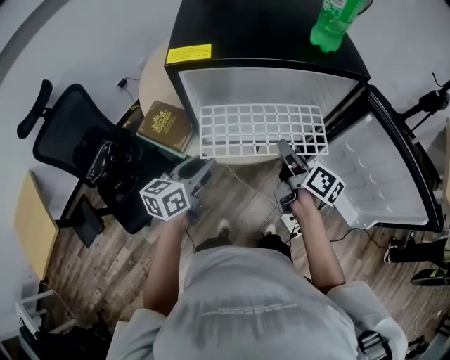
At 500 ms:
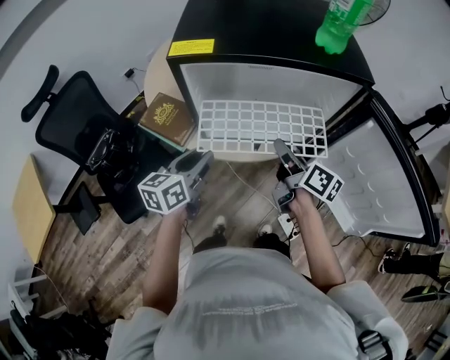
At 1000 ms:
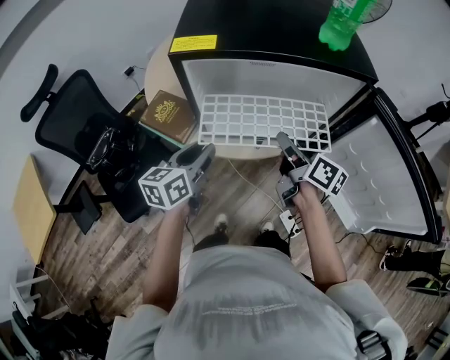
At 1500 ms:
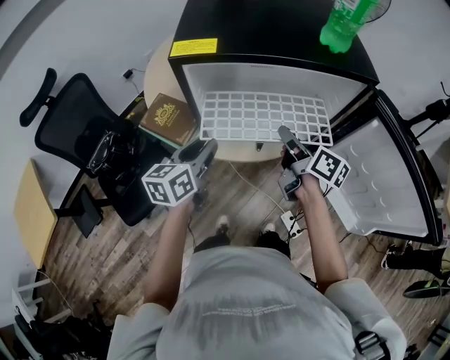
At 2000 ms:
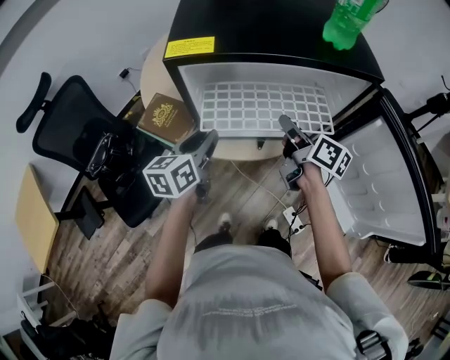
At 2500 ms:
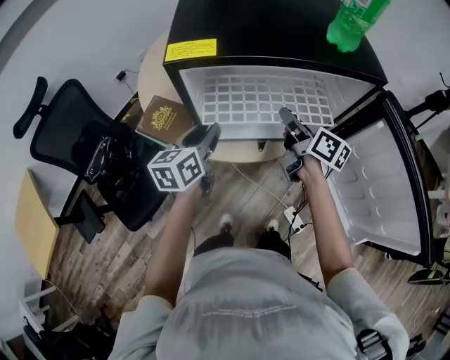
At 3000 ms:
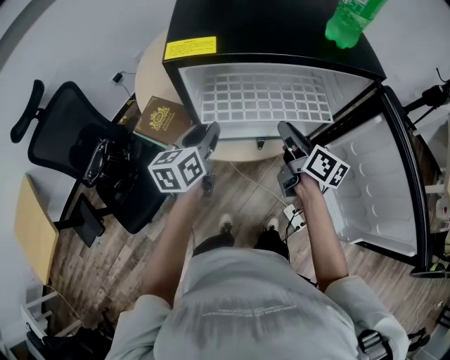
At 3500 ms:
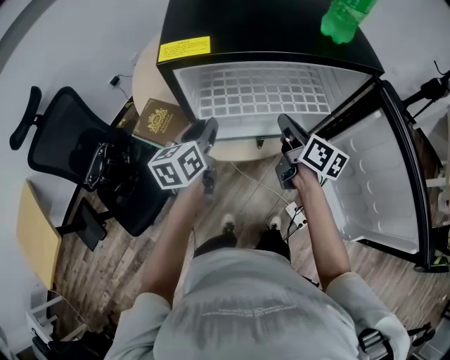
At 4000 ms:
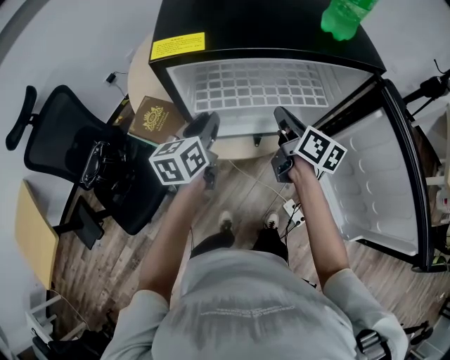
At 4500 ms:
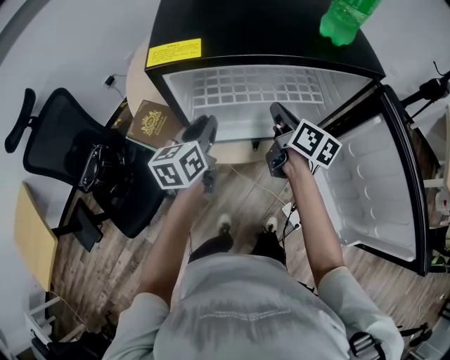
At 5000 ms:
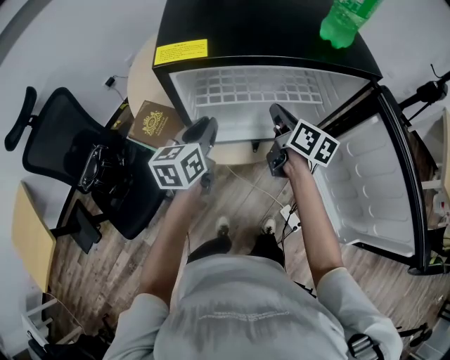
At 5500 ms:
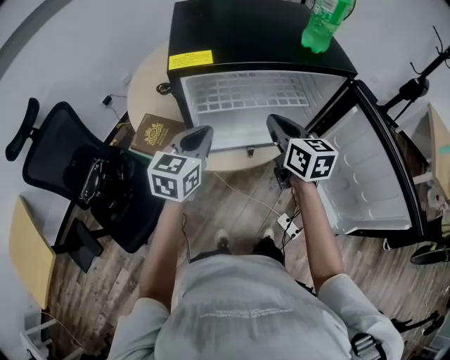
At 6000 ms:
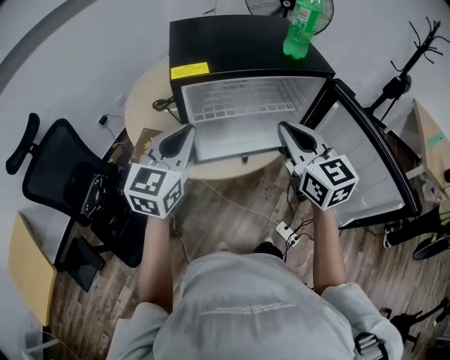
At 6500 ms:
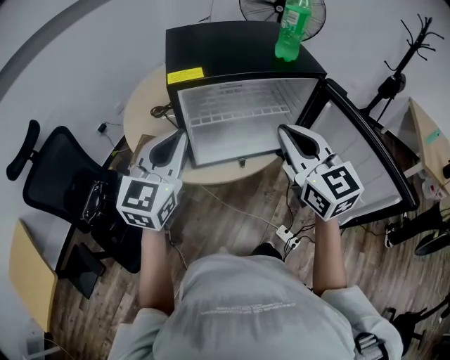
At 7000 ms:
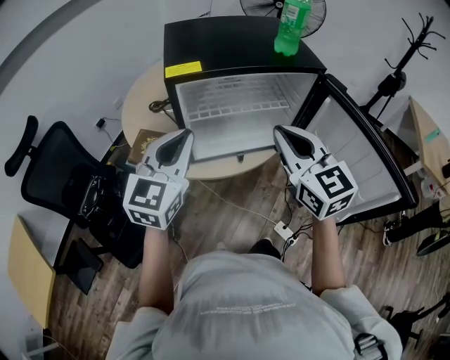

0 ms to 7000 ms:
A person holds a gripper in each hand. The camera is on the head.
0 ms to 2000 ms: Both grippers move forward, roughly 5 cm.
2000 ms to 5000 ms: The grippers stay close to where they were, moving slightly.
5000 ms to 7000 ms: The left gripper moves upward and backward, some 20 cm, and turns by approximately 40 degrees; the right gripper heads backward and upward, covering approximately 25 cm, and rolls counterclockwise, seen from behind, by approximately 50 degrees.

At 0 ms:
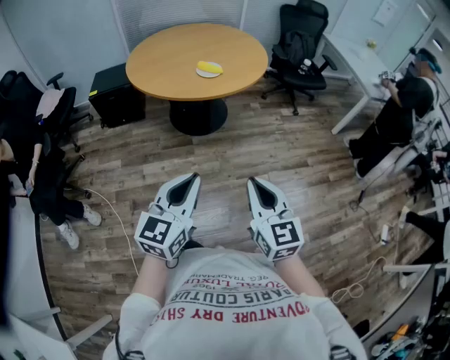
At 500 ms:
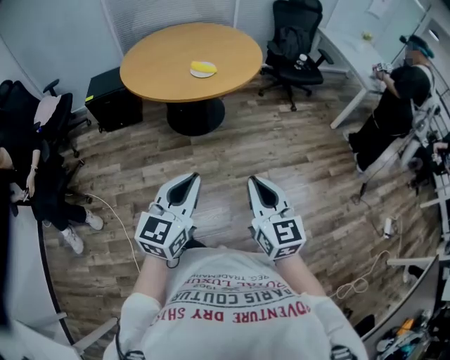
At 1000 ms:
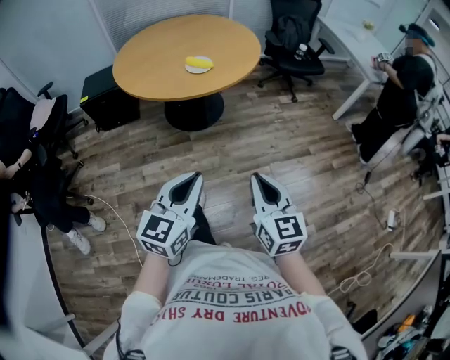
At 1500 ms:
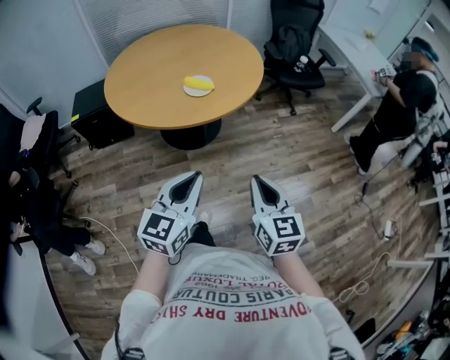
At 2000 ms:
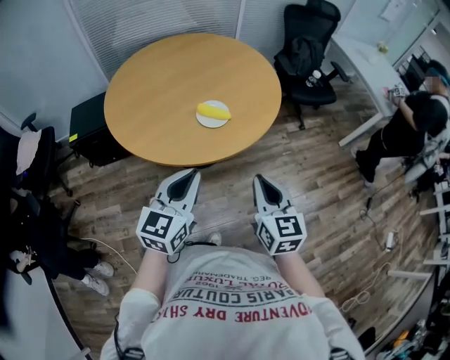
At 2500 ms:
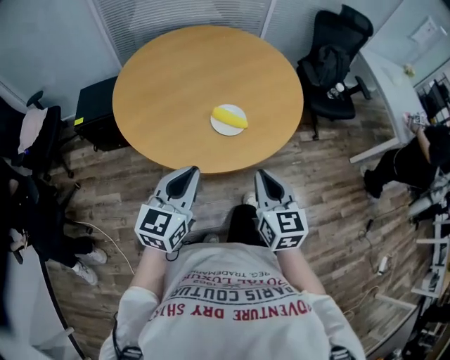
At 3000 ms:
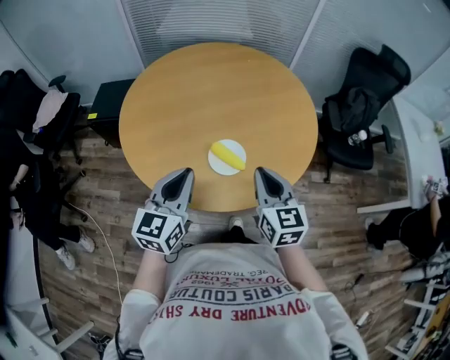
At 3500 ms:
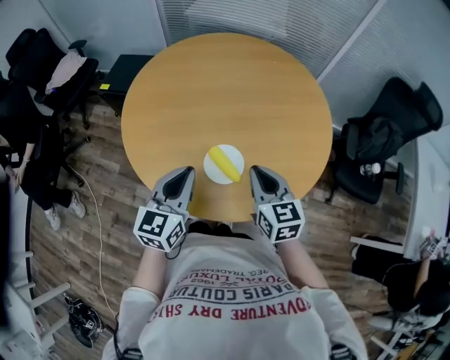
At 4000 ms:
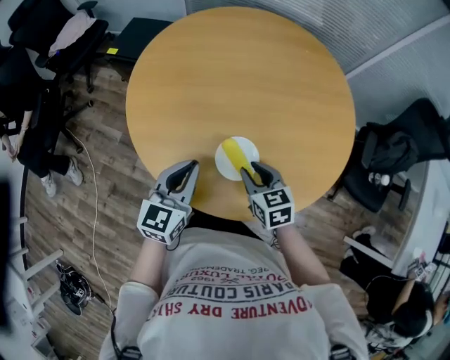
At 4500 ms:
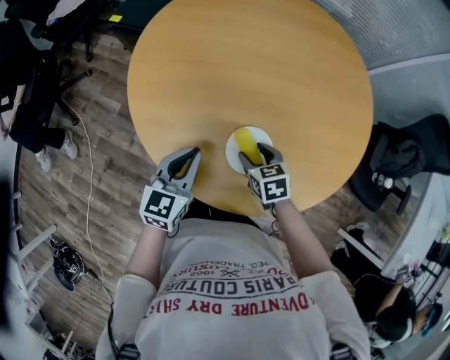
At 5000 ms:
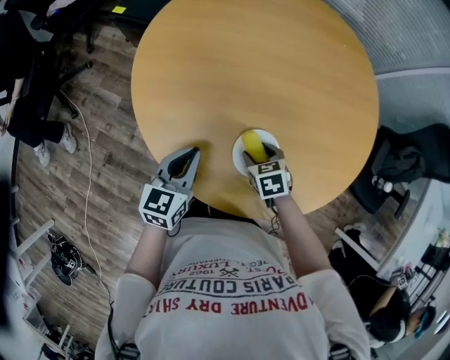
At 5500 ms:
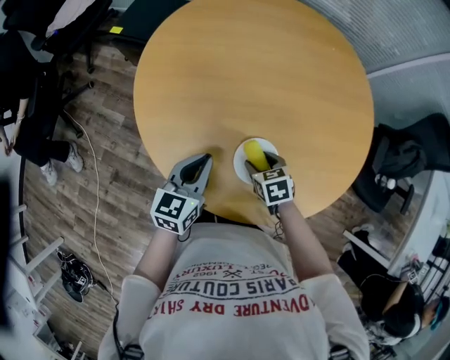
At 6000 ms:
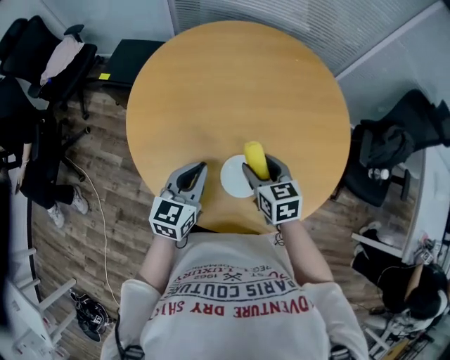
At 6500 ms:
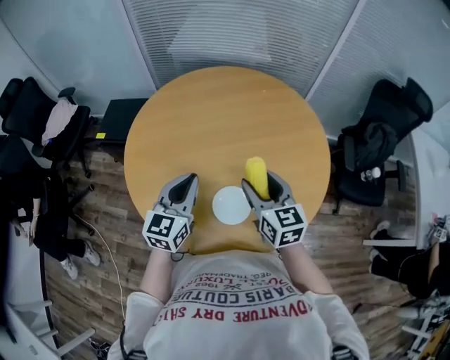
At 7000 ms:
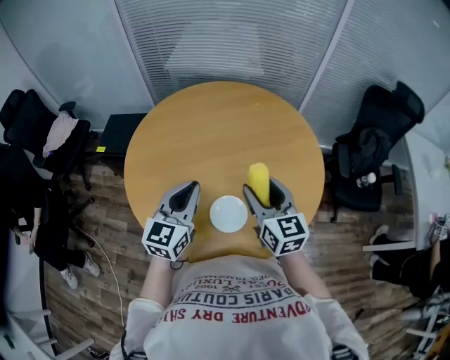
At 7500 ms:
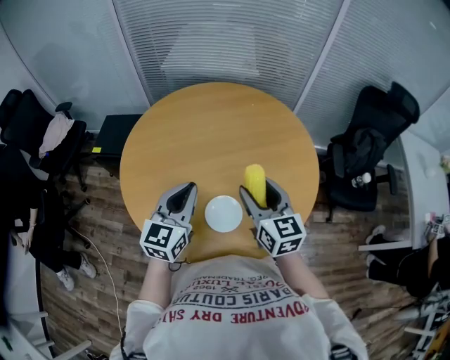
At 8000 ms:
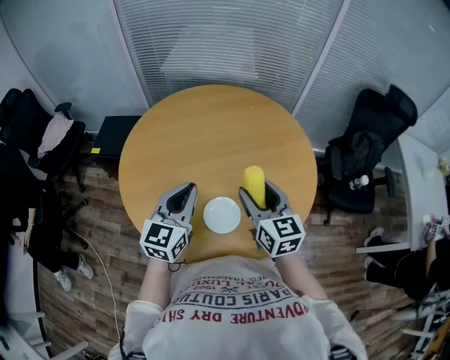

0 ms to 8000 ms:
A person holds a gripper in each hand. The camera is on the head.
0 ms to 2000 ms: Both grippers move forward, approximately 40 cm.
2000 ms to 4000 ms: The right gripper ends up roughly 40 cm from where it was, rotates about 60 degrees, and opens up, while the left gripper shifts by roughly 30 cm, and swivels some 40 degrees.
4000 ms to 6000 ms: The two grippers go approximately 5 cm forward. The right gripper travels downward and back again, some 10 cm each way, and opens; the left gripper travels downward and back again, approximately 10 cm each way.
6000 ms to 8000 ms: Both grippers travel together upward and to the right, roughly 15 cm. The right gripper turns by some 30 degrees.

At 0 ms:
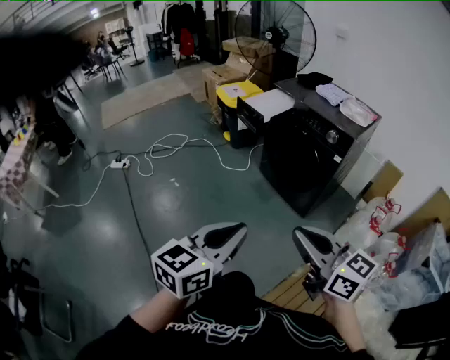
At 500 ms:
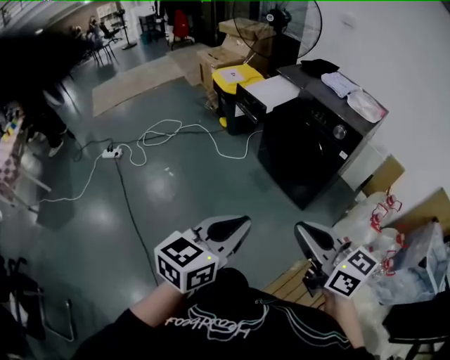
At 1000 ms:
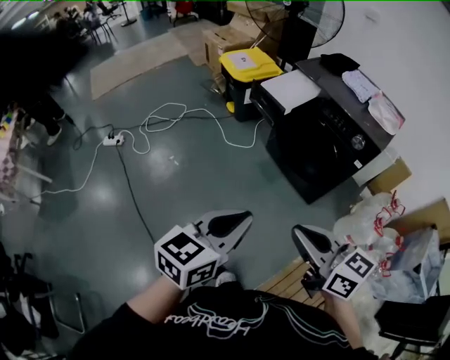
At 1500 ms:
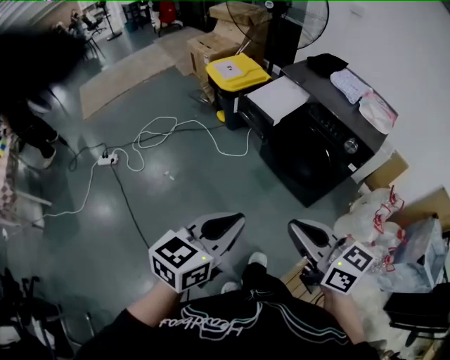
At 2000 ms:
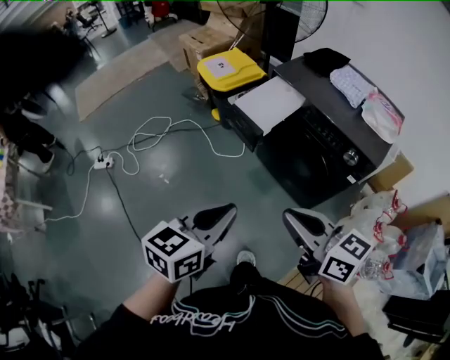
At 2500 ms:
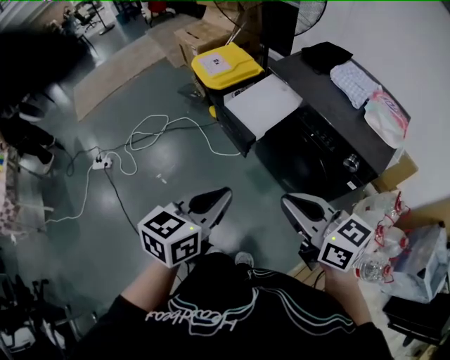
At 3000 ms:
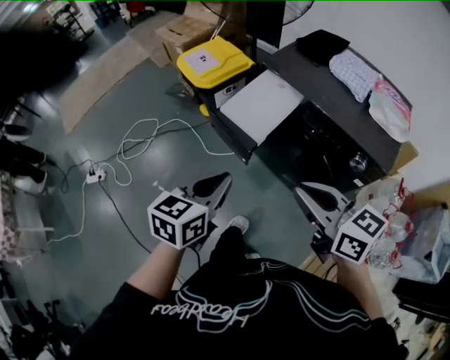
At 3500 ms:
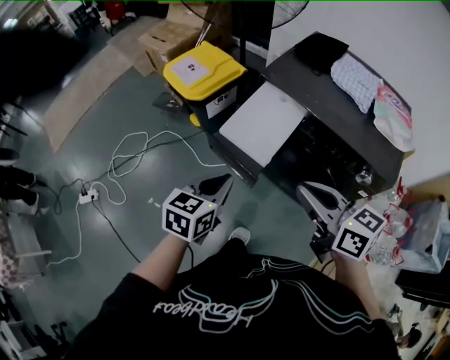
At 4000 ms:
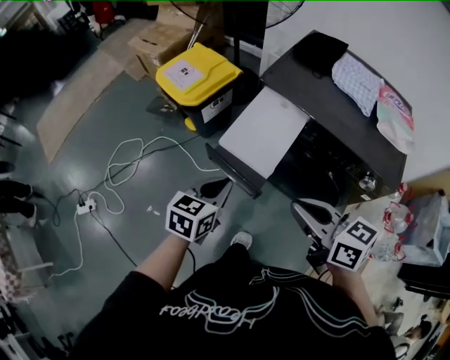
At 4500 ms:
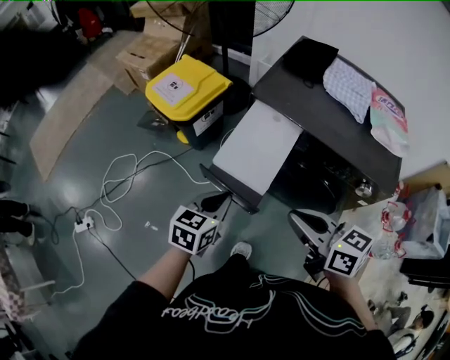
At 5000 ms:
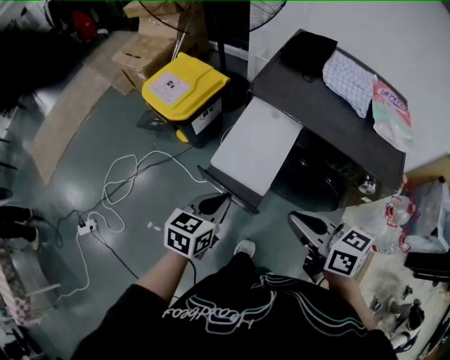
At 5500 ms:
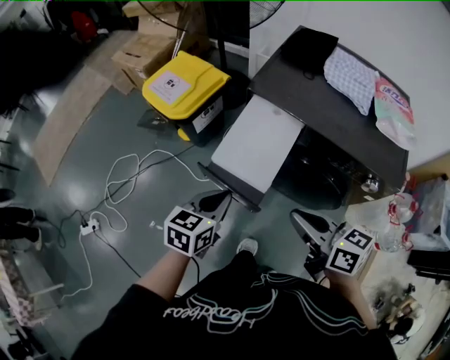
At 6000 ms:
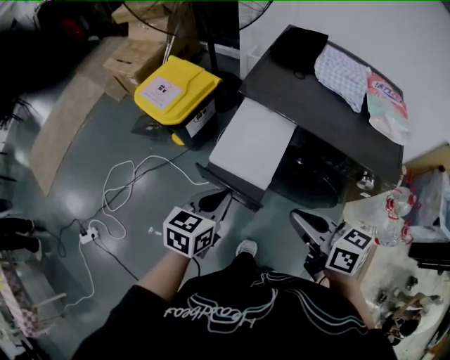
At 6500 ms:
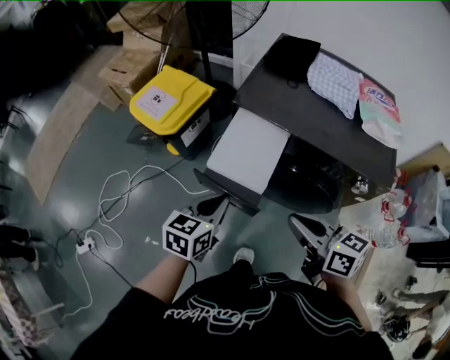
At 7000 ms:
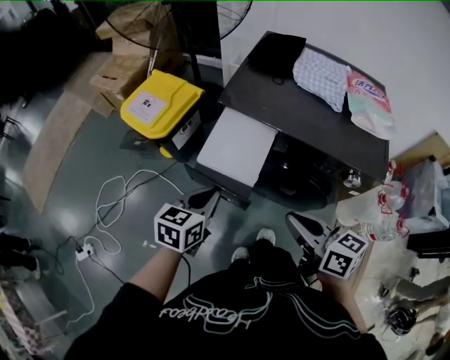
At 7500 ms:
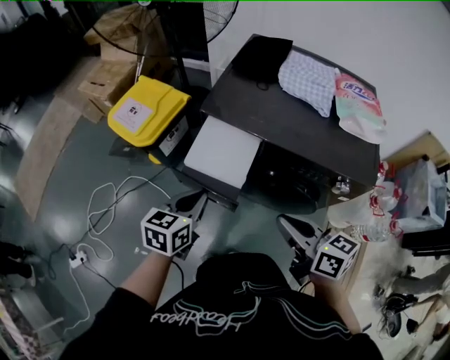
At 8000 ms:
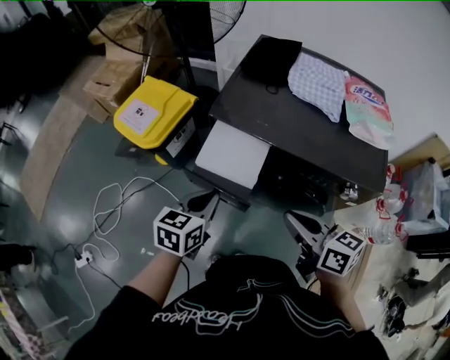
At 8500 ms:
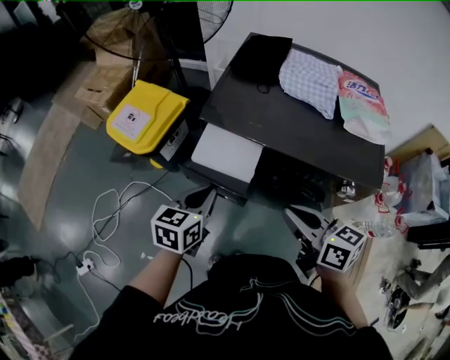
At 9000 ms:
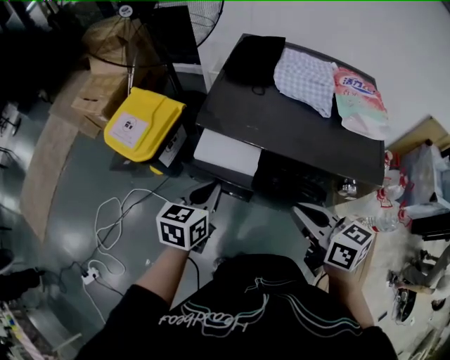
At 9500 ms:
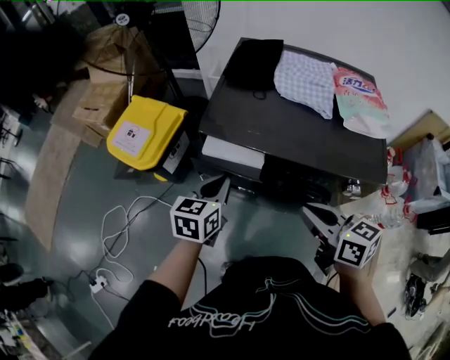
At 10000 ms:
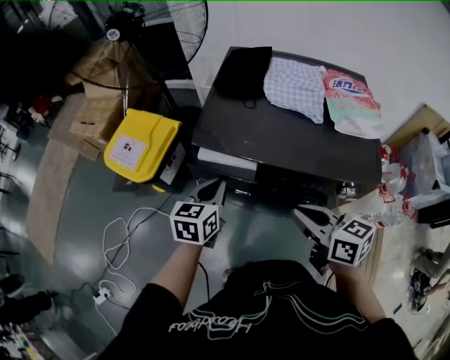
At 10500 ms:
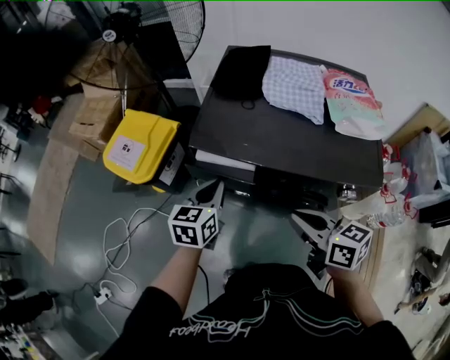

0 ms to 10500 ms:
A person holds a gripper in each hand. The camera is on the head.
0 ms to 2000 ms: Both grippers move forward, roughly 35 cm.
2000 ms to 4000 ms: The right gripper shifts about 25 cm forward, while the left gripper travels forward and downward by approximately 35 cm.
4000 ms to 6500 ms: The right gripper moves about 5 cm. Meanwhile the left gripper heads forward, covering roughly 5 cm.
6500 ms to 8500 ms: Both grippers travel together forward, about 5 cm.
8500 ms to 10500 ms: The left gripper is displaced forward by approximately 10 cm.

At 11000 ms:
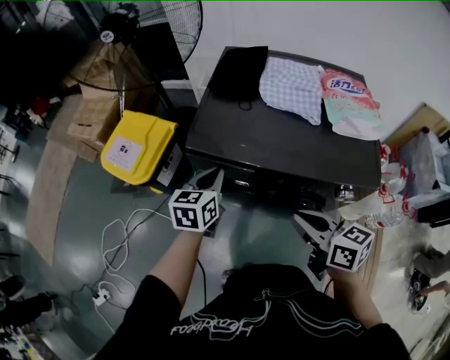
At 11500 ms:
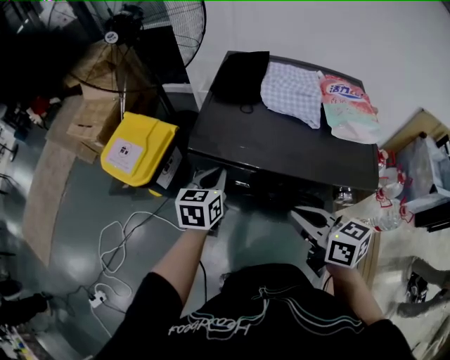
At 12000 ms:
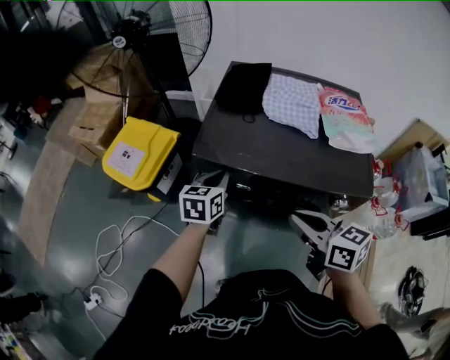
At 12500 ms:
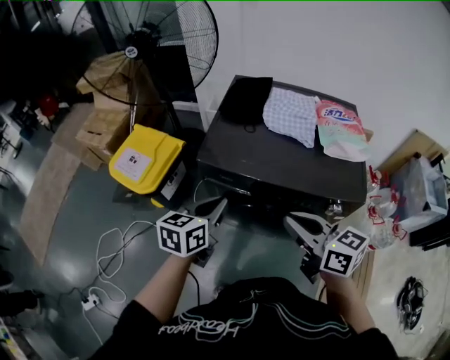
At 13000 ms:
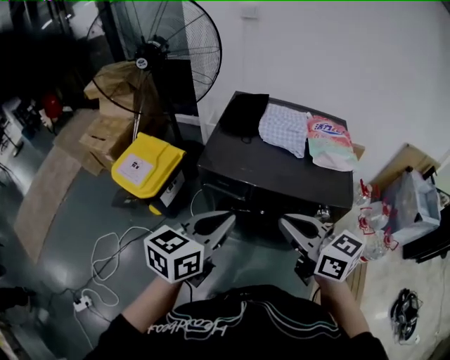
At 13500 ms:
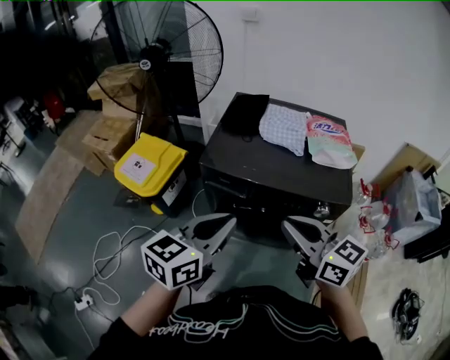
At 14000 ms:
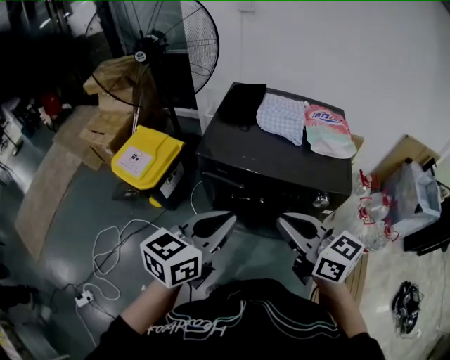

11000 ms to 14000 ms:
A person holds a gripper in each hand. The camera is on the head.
11000 ms to 12500 ms: The left gripper is displaced backward and upward by some 10 cm. The right gripper heads upward, covering about 10 cm.
12500 ms to 14000 ms: The left gripper heads backward and upward, covering approximately 20 cm, while the right gripper shifts about 10 cm backward and upward.
